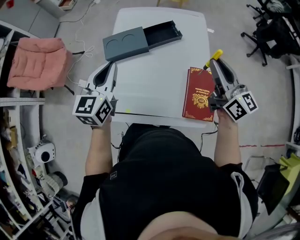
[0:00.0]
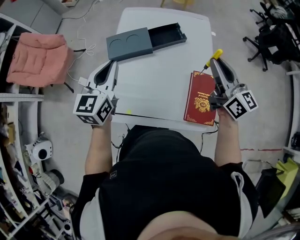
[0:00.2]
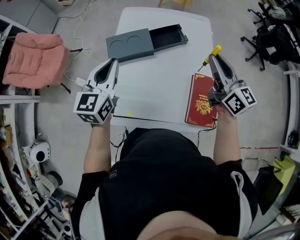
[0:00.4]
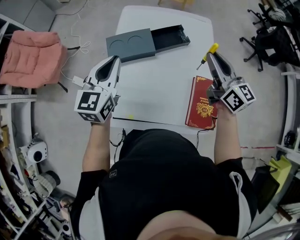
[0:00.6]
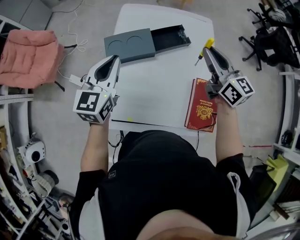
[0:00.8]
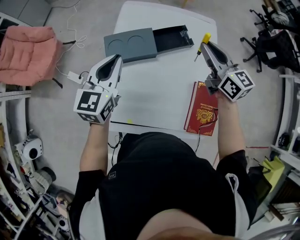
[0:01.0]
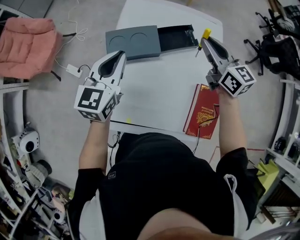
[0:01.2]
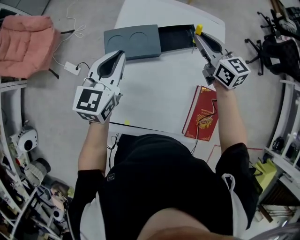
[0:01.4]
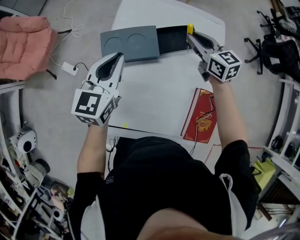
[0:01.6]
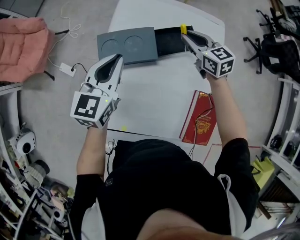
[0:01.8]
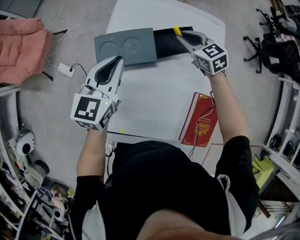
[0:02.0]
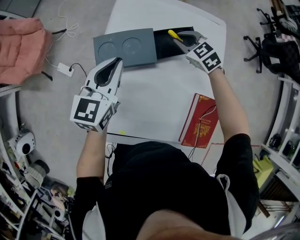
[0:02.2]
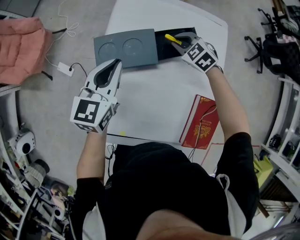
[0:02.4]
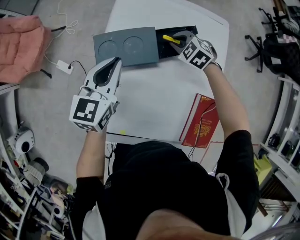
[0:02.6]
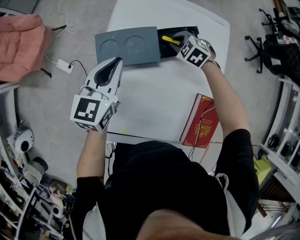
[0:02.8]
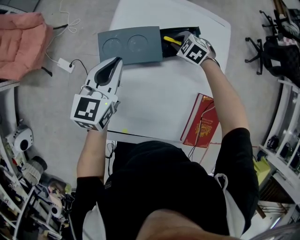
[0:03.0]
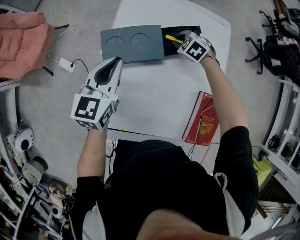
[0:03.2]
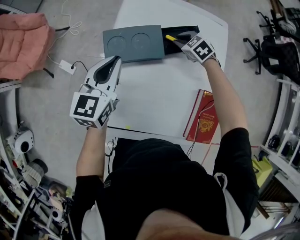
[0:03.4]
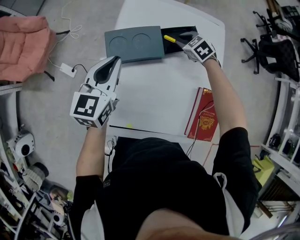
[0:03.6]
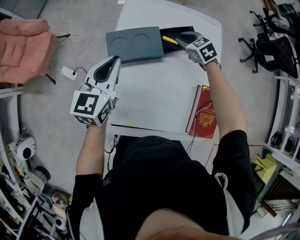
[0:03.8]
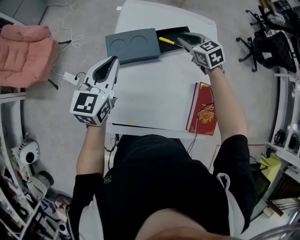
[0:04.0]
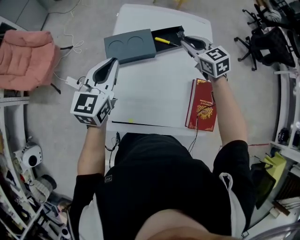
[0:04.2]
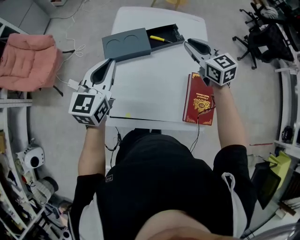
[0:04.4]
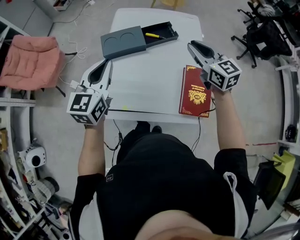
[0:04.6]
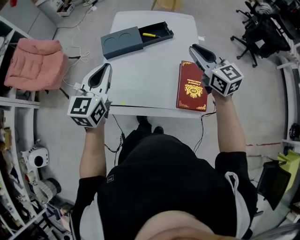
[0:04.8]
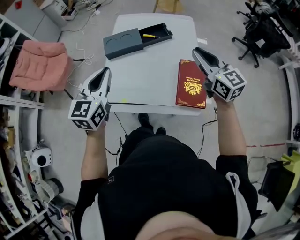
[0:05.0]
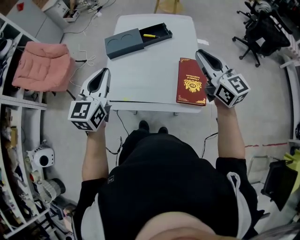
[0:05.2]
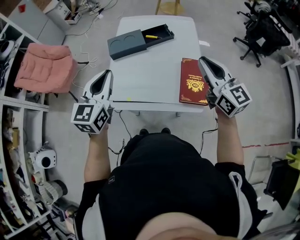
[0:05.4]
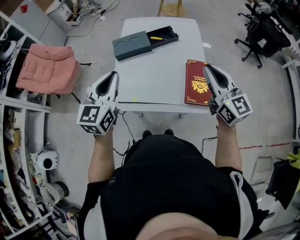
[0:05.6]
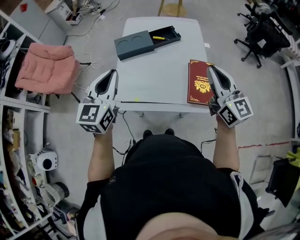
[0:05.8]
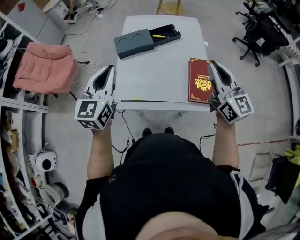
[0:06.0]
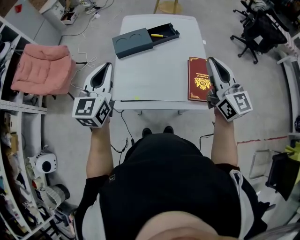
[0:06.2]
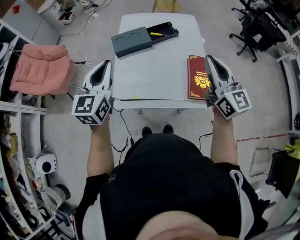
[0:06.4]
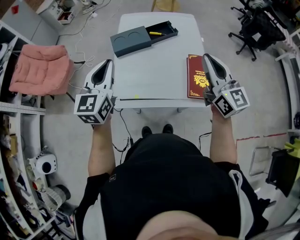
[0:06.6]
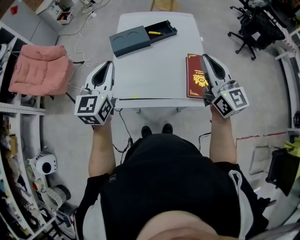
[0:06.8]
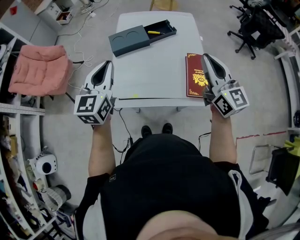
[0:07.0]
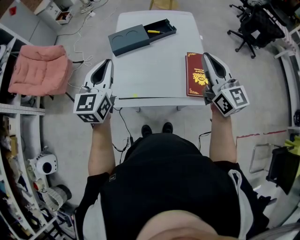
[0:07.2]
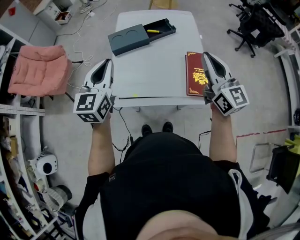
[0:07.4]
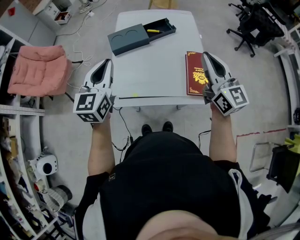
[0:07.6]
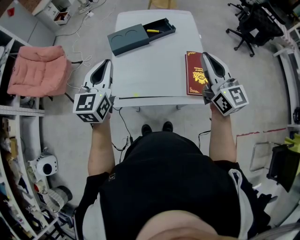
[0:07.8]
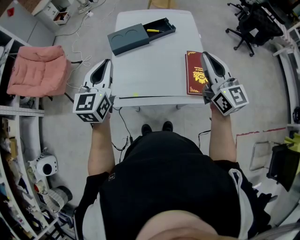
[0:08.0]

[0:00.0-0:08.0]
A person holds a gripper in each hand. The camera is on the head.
0:00.0 to 0:01.6: The right gripper moves forward, downward and to the left, some 35 cm, and rotates about 30 degrees; the left gripper shifts roughly 15 cm forward and downward.
0:01.6 to 0:03.2: The right gripper travels downward by roughly 20 cm, and angles its fingers downward, by about 40 degrees.
0:03.2 to 0:04.8: The left gripper heads backward and upward, covering some 30 cm; the right gripper is displaced upward and backward by approximately 50 cm, and tilts its fingers approximately 60 degrees upward.
0:04.8 to 0:06.4: The right gripper shifts about 15 cm backward and upward, and turns by some 20 degrees. The left gripper is displaced to the left by some 5 cm.
0:06.4 to 0:08.0: The grippers make only small movements.

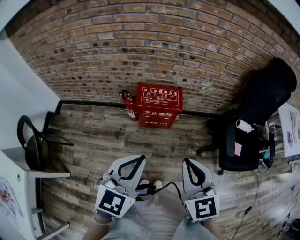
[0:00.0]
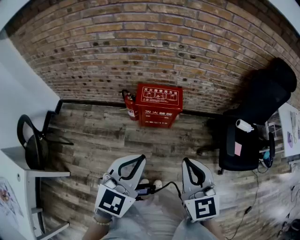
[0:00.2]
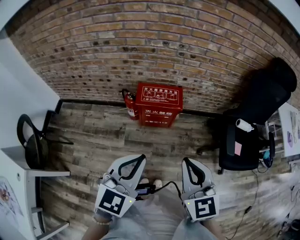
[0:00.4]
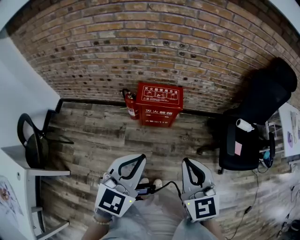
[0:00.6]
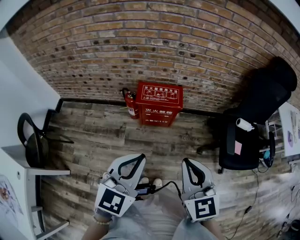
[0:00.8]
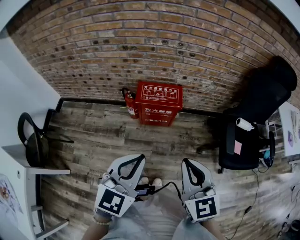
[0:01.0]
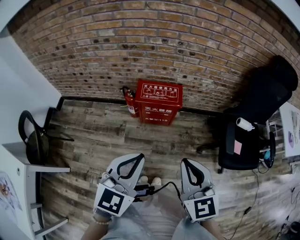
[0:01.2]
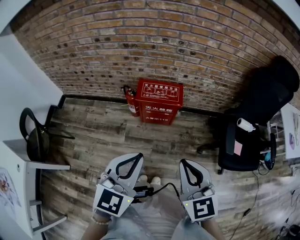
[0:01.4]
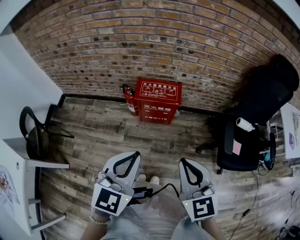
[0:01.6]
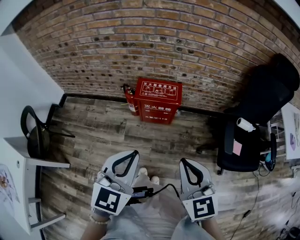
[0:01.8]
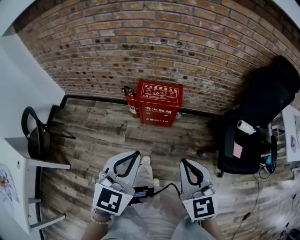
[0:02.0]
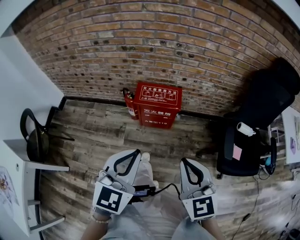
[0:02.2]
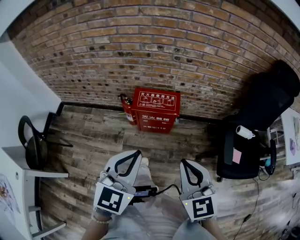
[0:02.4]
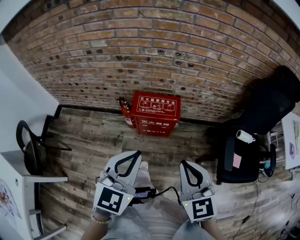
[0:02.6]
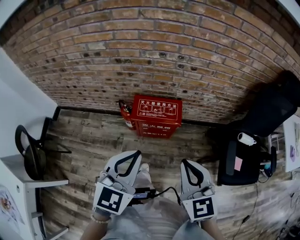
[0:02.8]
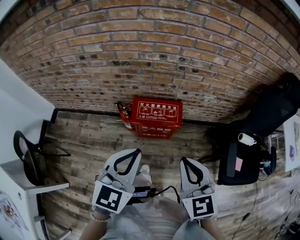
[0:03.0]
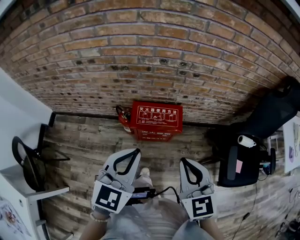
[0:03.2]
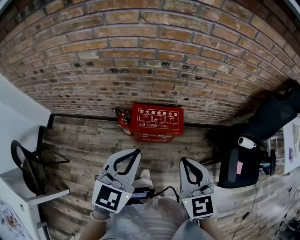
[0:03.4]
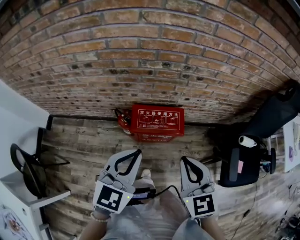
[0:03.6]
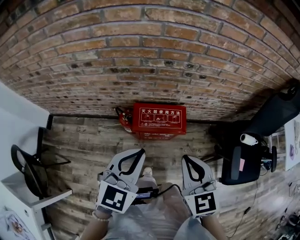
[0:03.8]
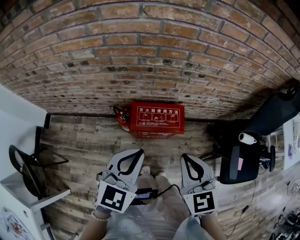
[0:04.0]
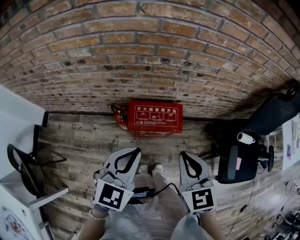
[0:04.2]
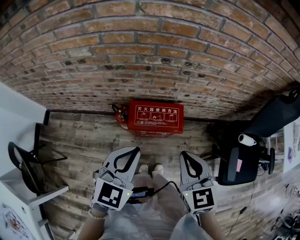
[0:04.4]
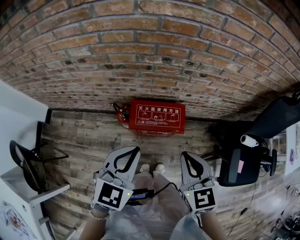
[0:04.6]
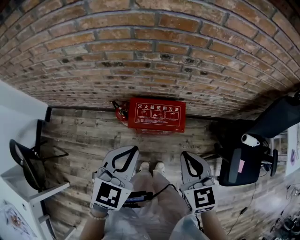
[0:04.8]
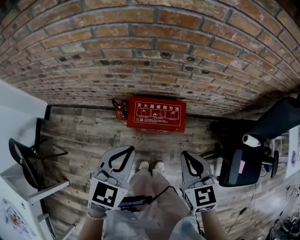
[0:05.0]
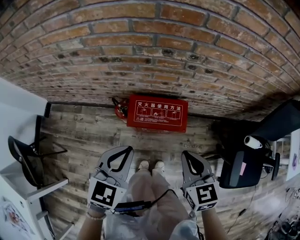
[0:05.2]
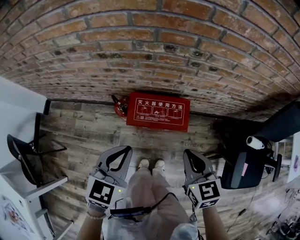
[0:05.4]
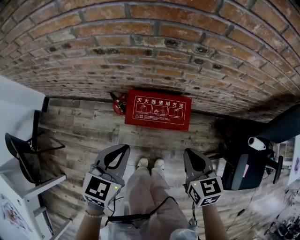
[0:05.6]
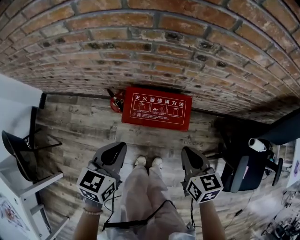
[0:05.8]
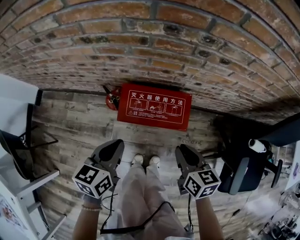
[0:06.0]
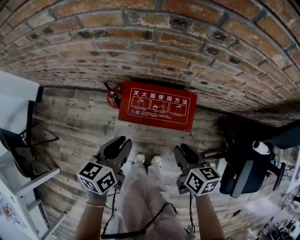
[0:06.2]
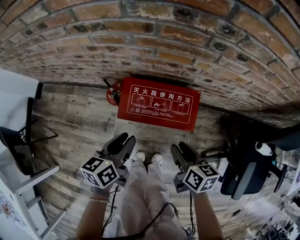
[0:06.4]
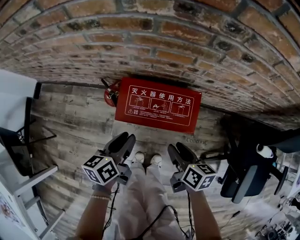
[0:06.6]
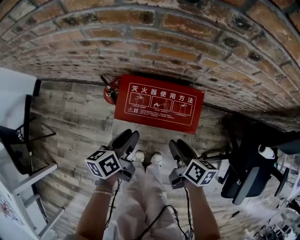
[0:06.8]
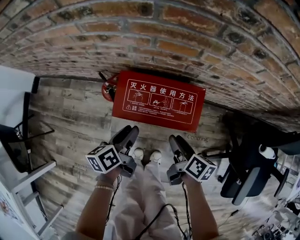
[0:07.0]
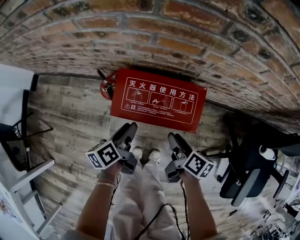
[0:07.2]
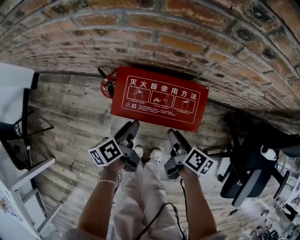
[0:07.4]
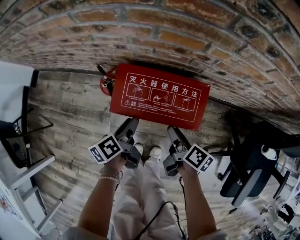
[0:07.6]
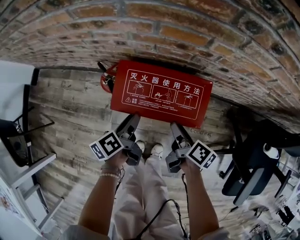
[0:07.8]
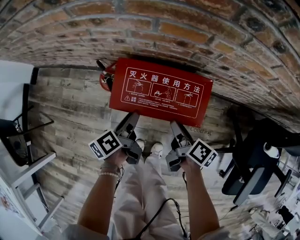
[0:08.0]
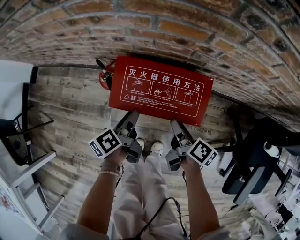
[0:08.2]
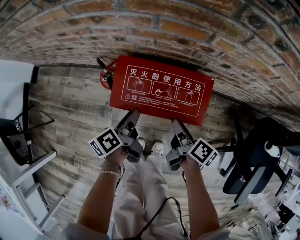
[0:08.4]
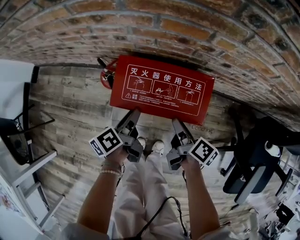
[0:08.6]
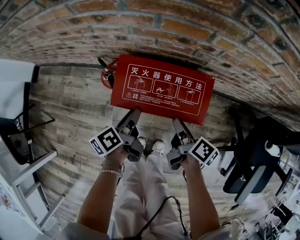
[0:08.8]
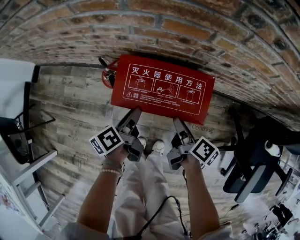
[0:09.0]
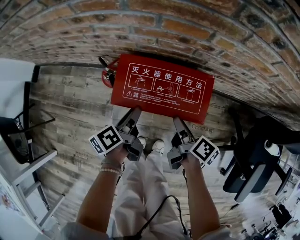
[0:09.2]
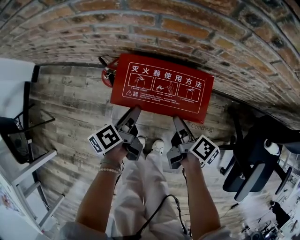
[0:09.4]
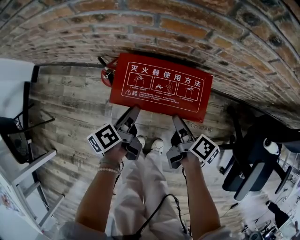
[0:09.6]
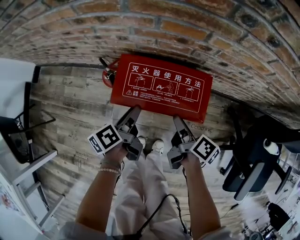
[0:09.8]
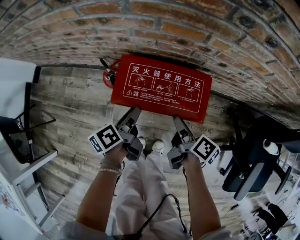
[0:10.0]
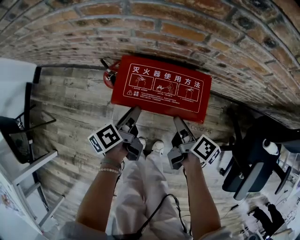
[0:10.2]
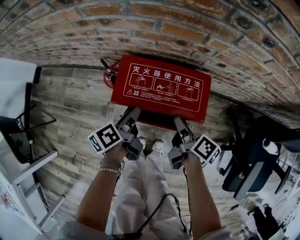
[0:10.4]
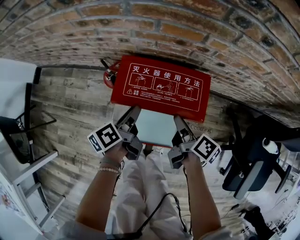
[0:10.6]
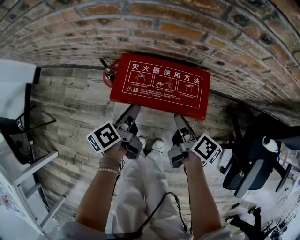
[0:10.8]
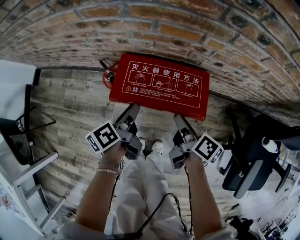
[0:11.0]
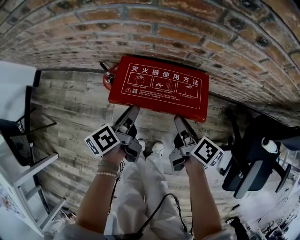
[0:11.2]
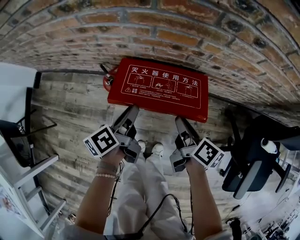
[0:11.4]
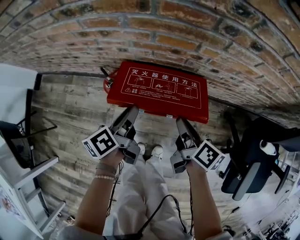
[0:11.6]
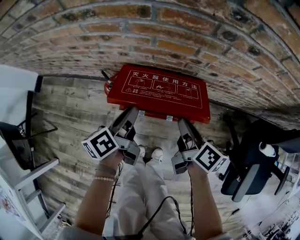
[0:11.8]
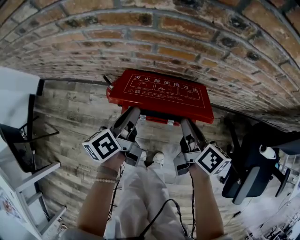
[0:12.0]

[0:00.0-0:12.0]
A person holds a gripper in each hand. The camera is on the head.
0:00.0 to 0:01.6: The grippers make only small movements.
0:01.6 to 0:03.0: Both grippers travel together forward, roughly 20 cm.
0:03.0 to 0:04.4: The two grippers go roughly 10 cm forward.
0:04.4 to 0:06.0: Both grippers move downward, roughly 20 cm. The left gripper rotates around the line of its fingers by approximately 40 degrees, counterclockwise from behind. Meanwhile the right gripper turns by roughly 30 degrees.
0:06.0 to 0:07.6: Both grippers travel together downward, roughly 20 cm. The right gripper rolls clockwise, seen from behind, by about 40 degrees, and opens. The left gripper rotates around the line of its fingers by approximately 50 degrees, counterclockwise from behind, and opens its fingers.
0:07.6 to 0:10.4: The grippers move only a little.
0:10.4 to 0:12.0: Both grippers travel together upward, about 10 cm. The right gripper closes up.

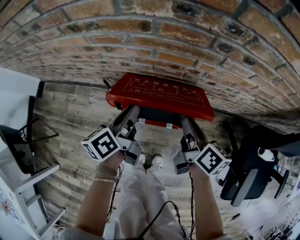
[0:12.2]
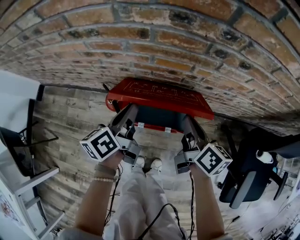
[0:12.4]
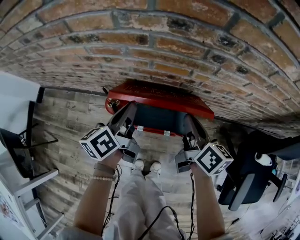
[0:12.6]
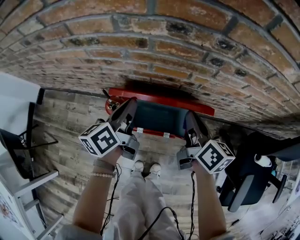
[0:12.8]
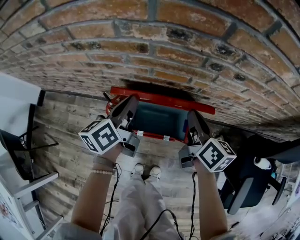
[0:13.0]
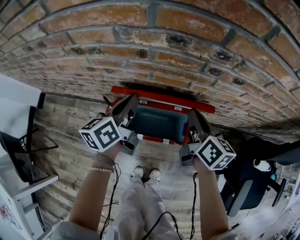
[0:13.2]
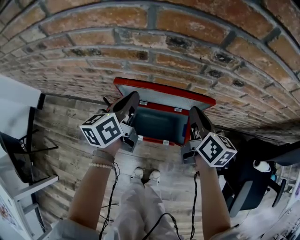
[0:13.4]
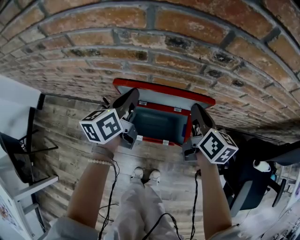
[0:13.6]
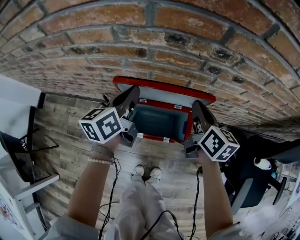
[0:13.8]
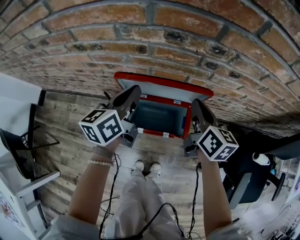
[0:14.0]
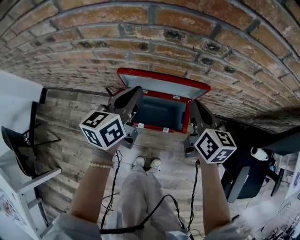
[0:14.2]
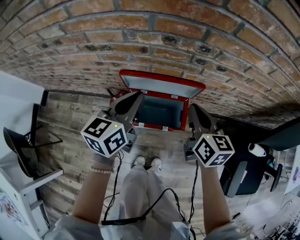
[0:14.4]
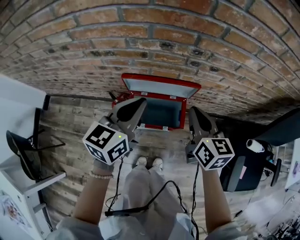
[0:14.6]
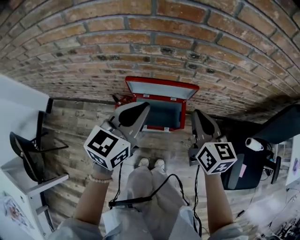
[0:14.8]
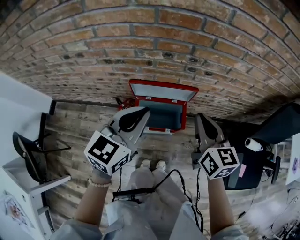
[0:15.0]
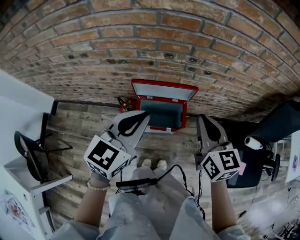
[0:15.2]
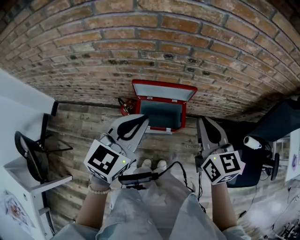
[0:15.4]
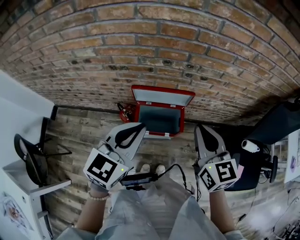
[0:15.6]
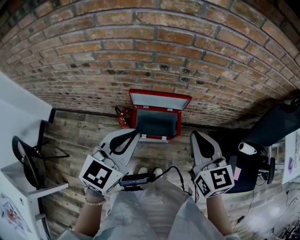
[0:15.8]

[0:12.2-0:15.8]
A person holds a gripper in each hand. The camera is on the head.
0:12.2 to 0:14.0: The two grippers go some 10 cm forward and upward. The left gripper changes its angle by some 20 degrees. Meanwhile the right gripper rotates about 20 degrees.
0:14.0 to 0:15.8: Both grippers move upward and backward, roughly 35 cm. The left gripper swivels approximately 40 degrees. The right gripper rotates some 30 degrees.
